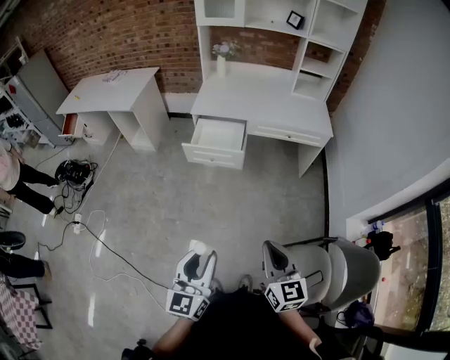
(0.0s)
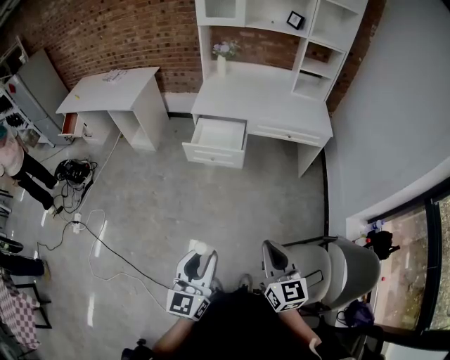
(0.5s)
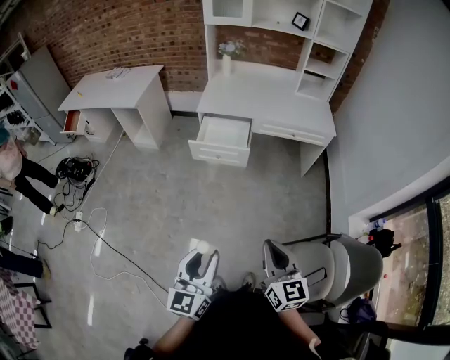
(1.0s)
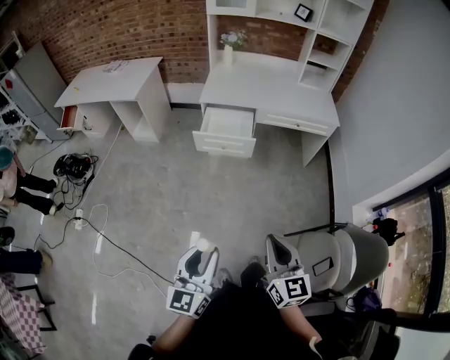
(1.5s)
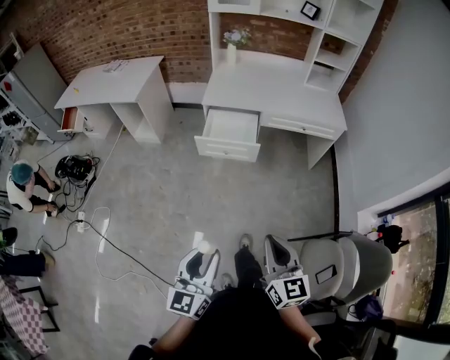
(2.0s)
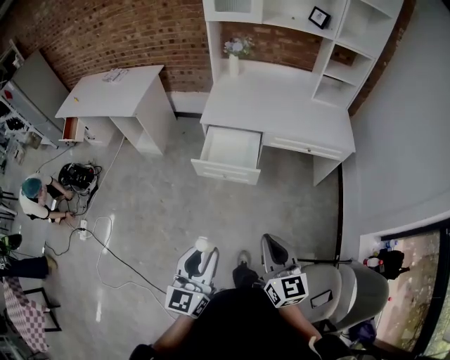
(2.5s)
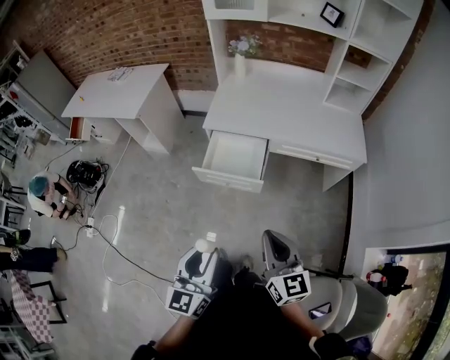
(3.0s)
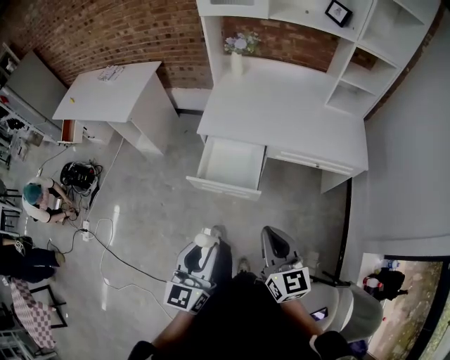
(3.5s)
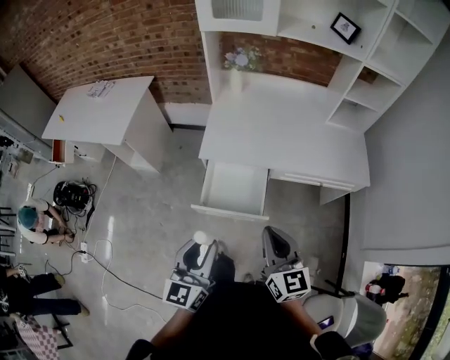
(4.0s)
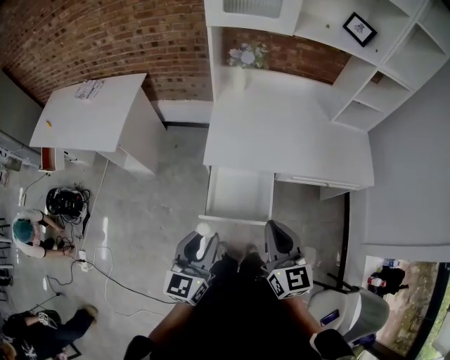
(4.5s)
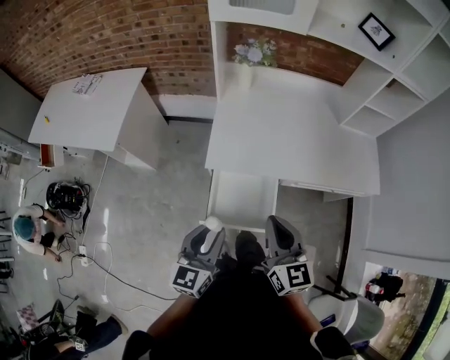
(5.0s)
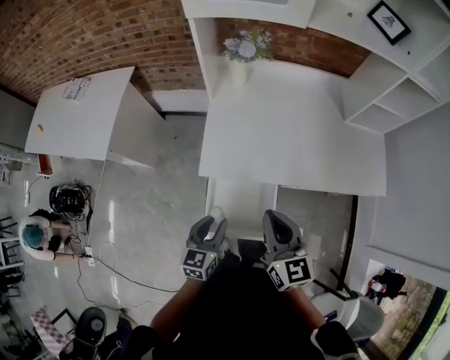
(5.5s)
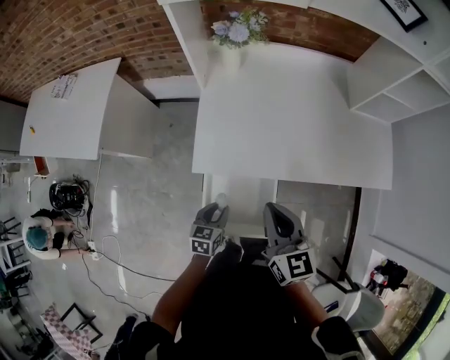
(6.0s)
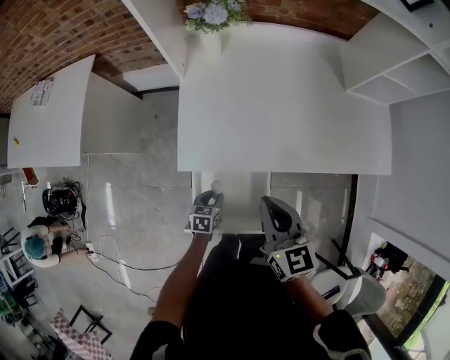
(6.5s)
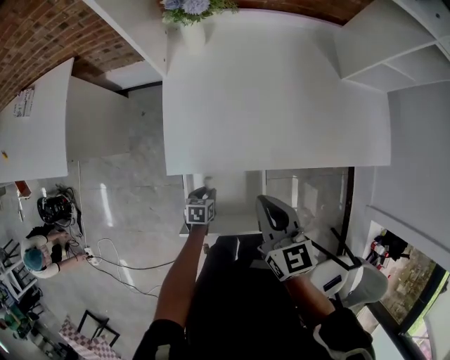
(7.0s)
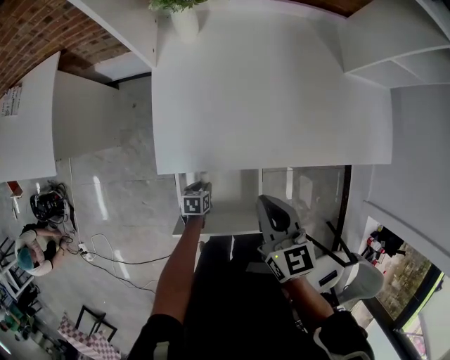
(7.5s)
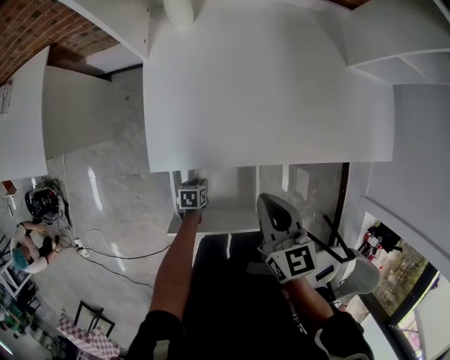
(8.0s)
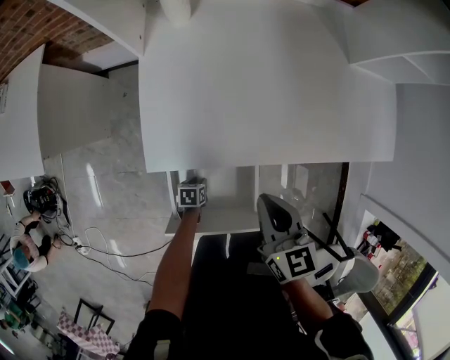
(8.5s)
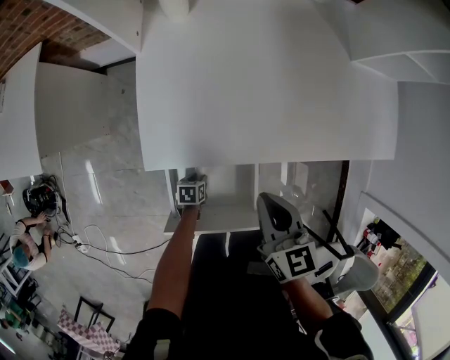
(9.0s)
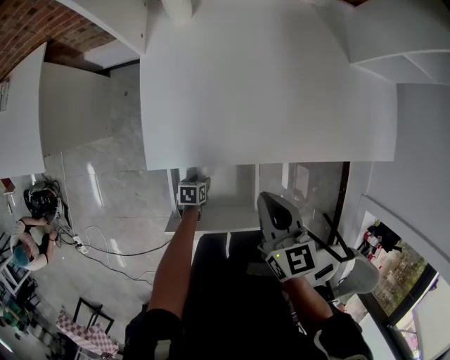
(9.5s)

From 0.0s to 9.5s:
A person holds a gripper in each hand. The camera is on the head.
From 0.0s to 2.0s: Both grippers travel together to the left, some 10 cm.
From 2.0s to 4.0s: Both grippers are carried forward, roughly 50 cm.
From 4.0s to 5.5s: The left gripper shifts roughly 30 cm forward and downward, and swivels roughly 20 degrees. The right gripper moves forward, approximately 25 cm.
From 5.5s to 7.5s: The right gripper shifts roughly 20 cm downward and forward, while the left gripper is displaced downward by roughly 35 cm, and points its fingers roughly 40 degrees further downward.
From 7.5s to 9.5s: The left gripper goes some 5 cm downward, and opens.

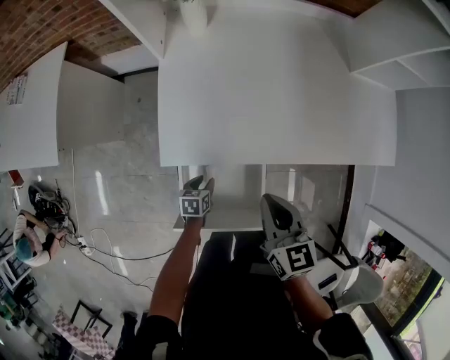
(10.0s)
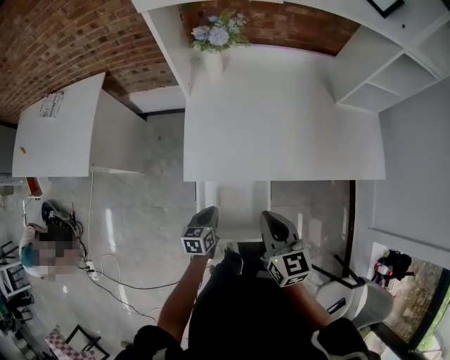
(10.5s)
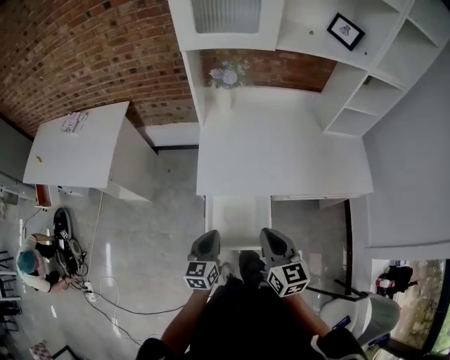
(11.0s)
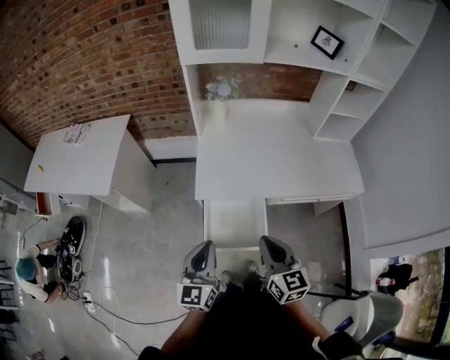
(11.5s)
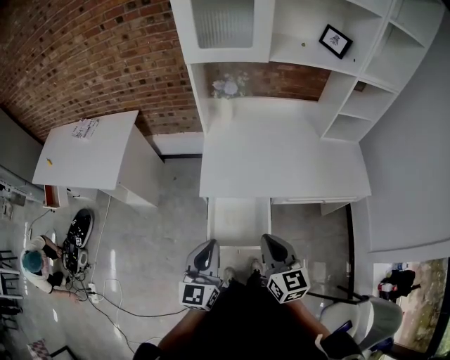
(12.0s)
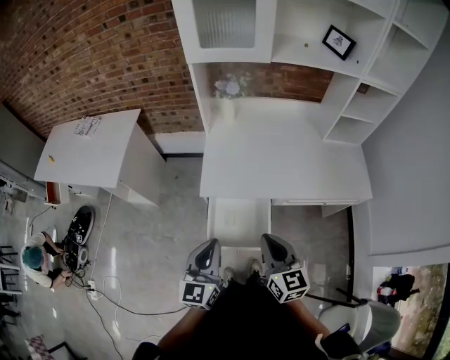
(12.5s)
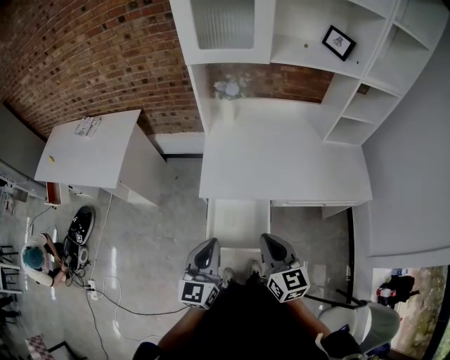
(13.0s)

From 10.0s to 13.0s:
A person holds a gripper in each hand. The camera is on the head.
From 10.0s to 11.5s: The right gripper goes some 30 cm backward and upward; the left gripper is displaced upward and backward by roughly 50 cm, angles its fingers upward, by roughly 50 degrees, and closes its fingers.
From 11.5s to 13.0s: The grippers move only a little.

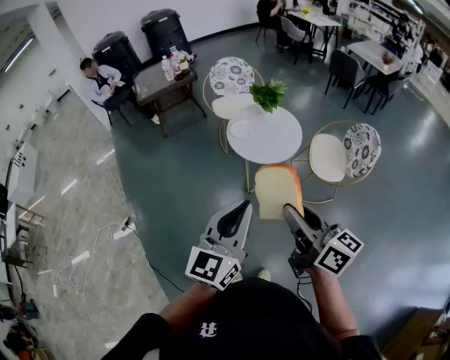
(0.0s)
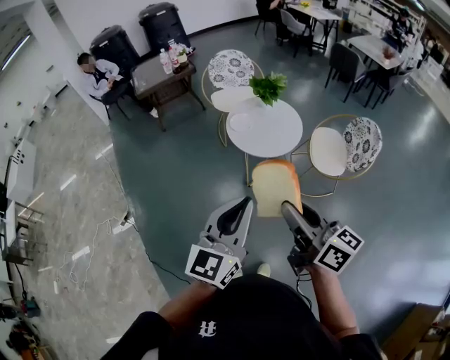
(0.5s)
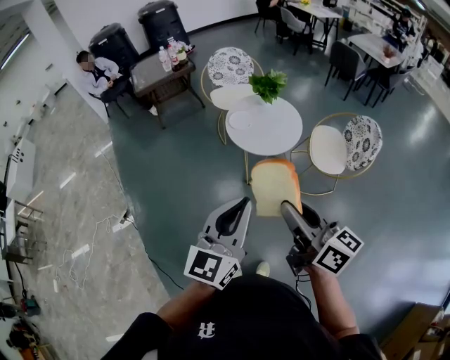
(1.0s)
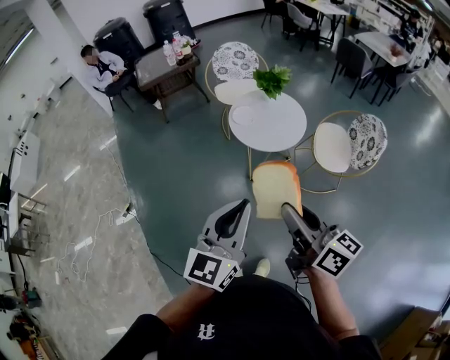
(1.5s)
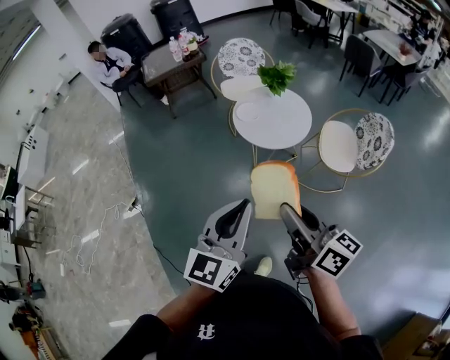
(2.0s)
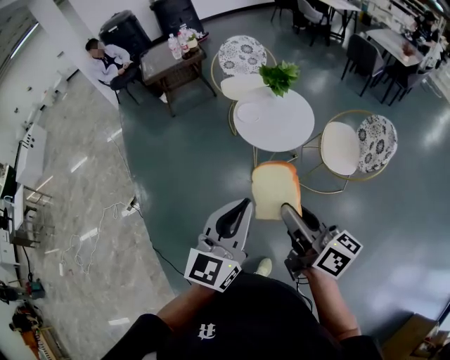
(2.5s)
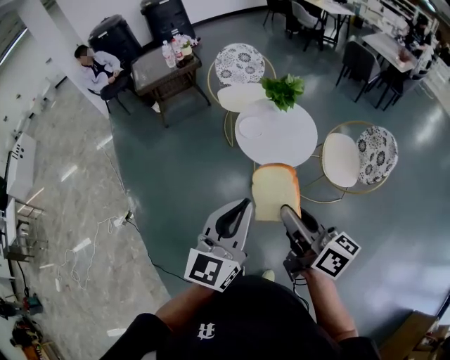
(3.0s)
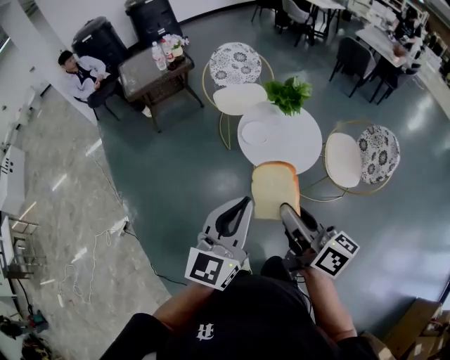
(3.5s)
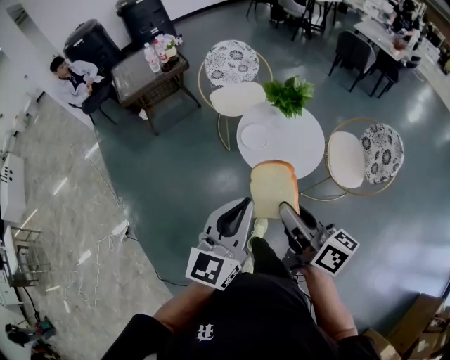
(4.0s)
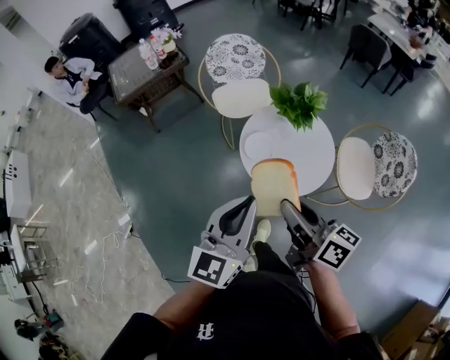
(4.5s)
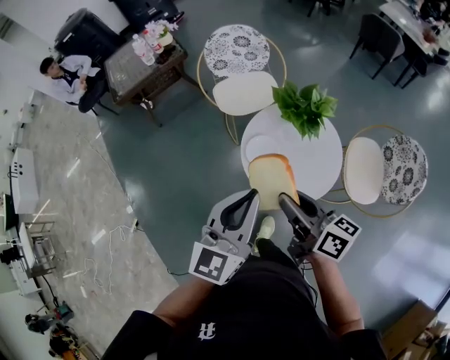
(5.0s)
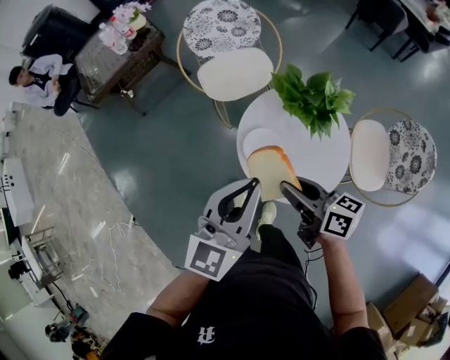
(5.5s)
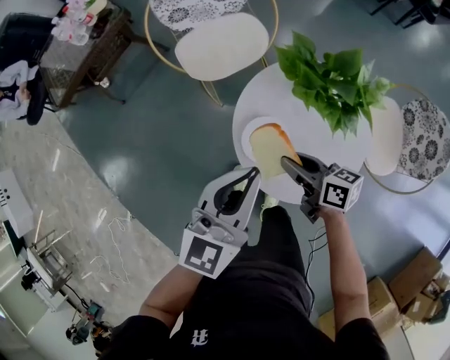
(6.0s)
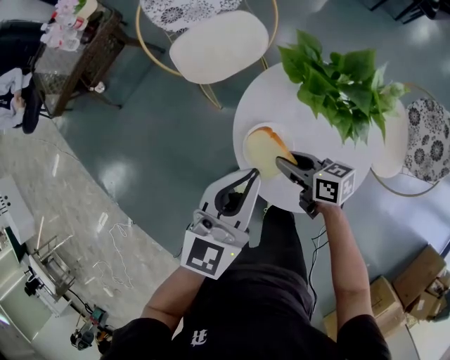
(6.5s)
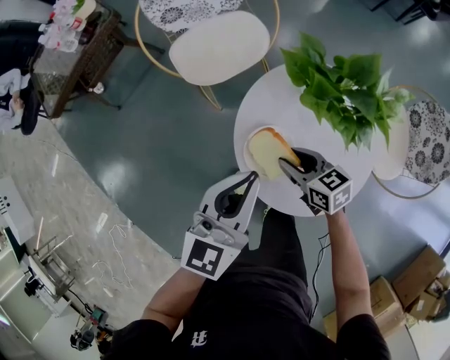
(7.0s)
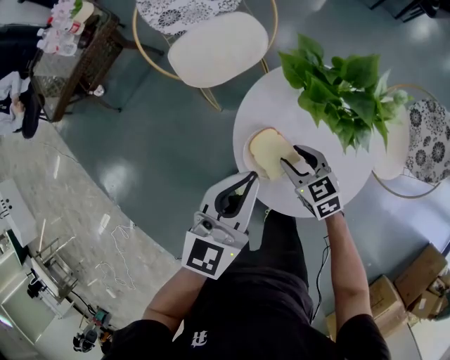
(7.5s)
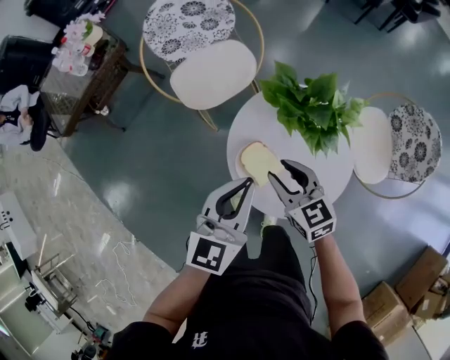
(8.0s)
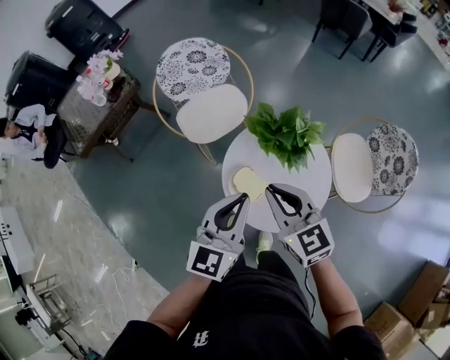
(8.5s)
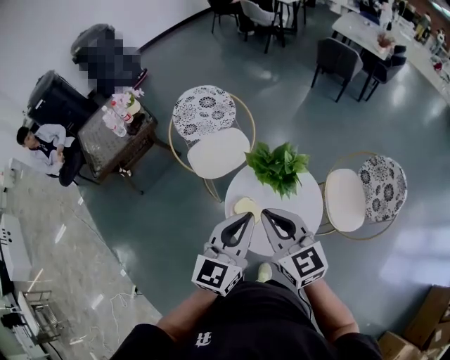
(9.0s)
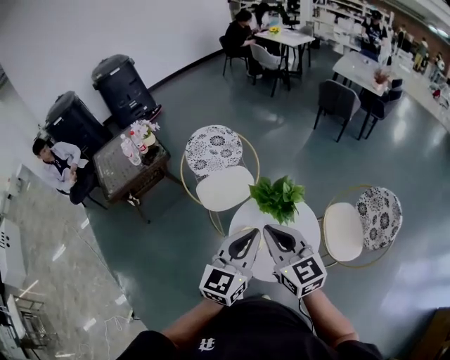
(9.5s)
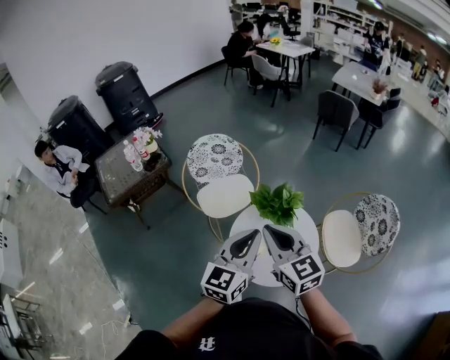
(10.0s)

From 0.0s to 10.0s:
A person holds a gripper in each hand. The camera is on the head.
From 0.0s to 2.0s: There are only small adjustments of the grippers.
From 2.0s to 4.0s: The two grippers go roughly 30 cm forward and to the left.
From 4.0s to 6.0s: Both grippers travel together forward and downward, roughly 50 cm. The right gripper rotates approximately 30 degrees.
From 6.0s to 8.0s: The right gripper goes about 5 cm upward, and turns by approximately 40 degrees.
From 8.0s to 10.0s: Both grippers move upward, some 30 cm. The right gripper rotates approximately 30 degrees, and closes its fingers.

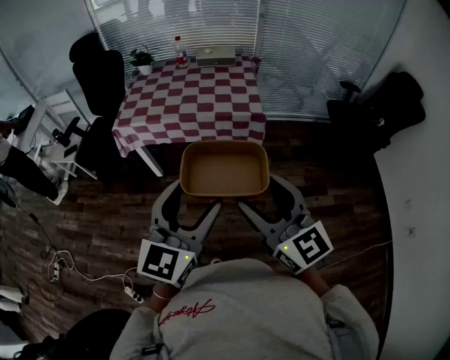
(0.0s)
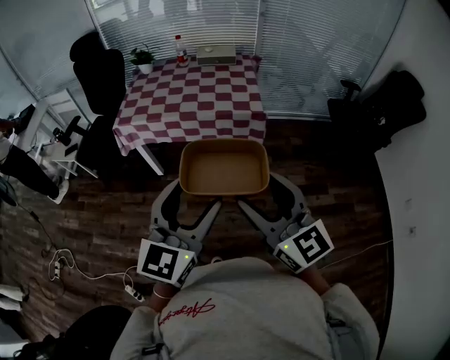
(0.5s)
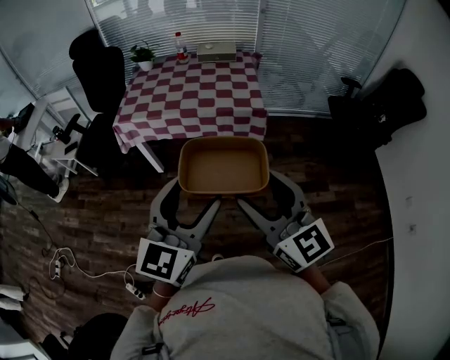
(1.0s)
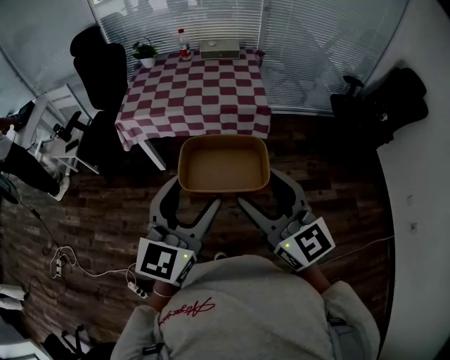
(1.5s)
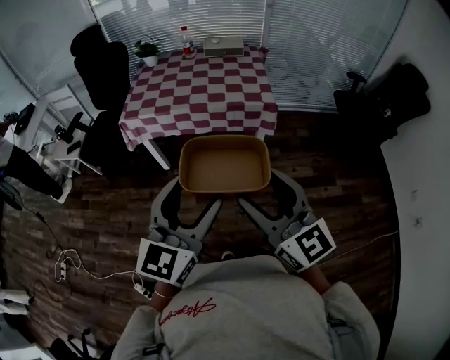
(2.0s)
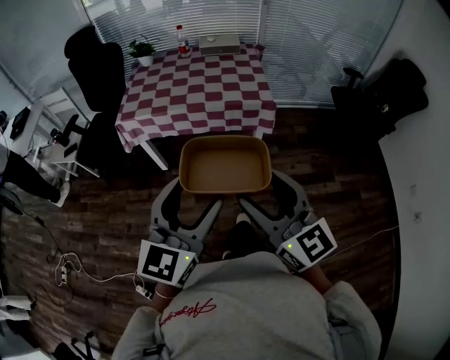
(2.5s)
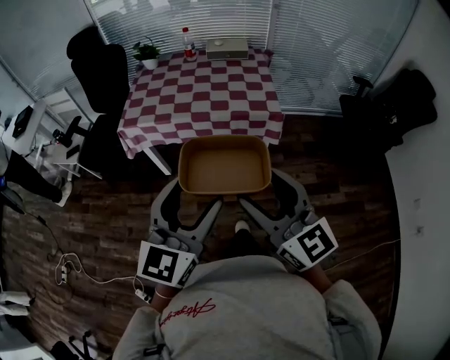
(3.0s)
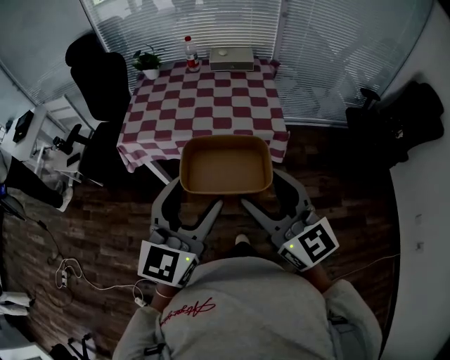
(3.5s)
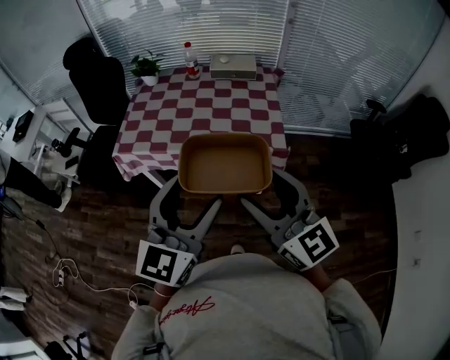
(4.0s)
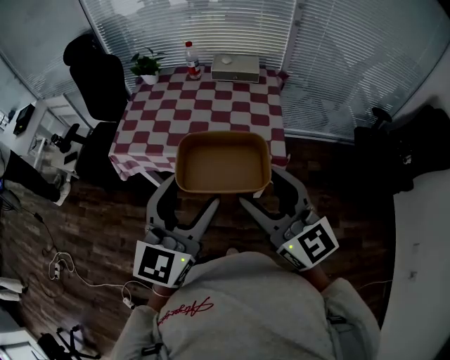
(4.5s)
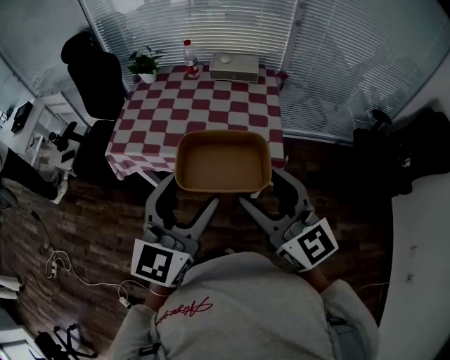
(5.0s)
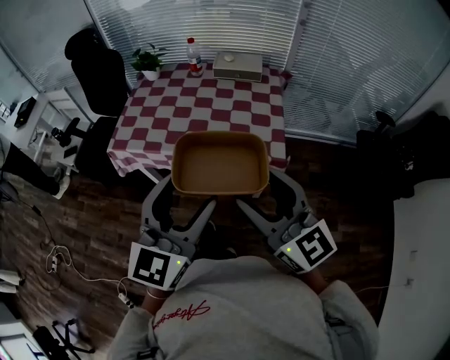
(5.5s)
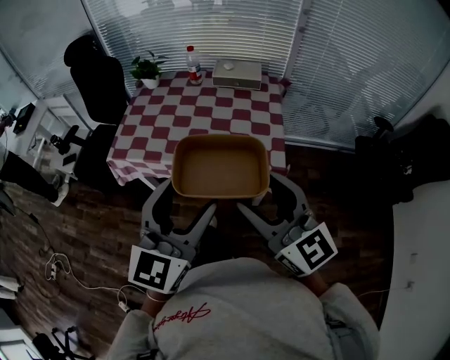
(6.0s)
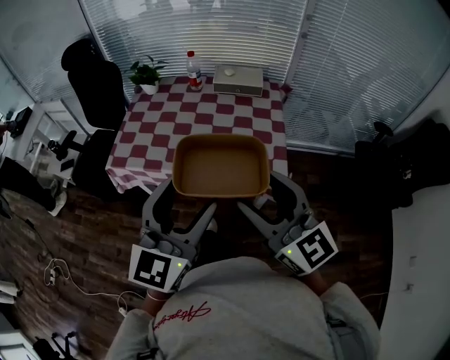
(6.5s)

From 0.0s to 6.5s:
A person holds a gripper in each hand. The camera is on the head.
From 0.0s to 2.0s: Both grippers travel together to the left, roughly 5 cm.
From 2.0s to 4.5s: Both grippers travel together forward, roughly 25 cm.
From 4.5s to 6.5s: The two grippers go some 5 cm forward.
